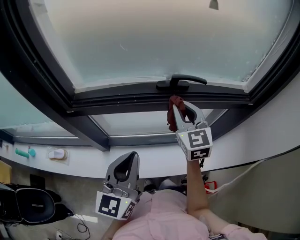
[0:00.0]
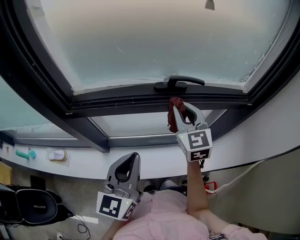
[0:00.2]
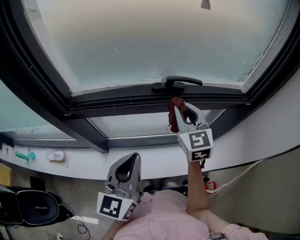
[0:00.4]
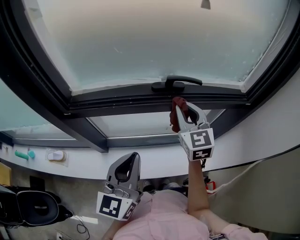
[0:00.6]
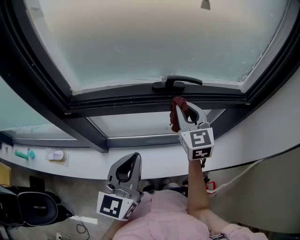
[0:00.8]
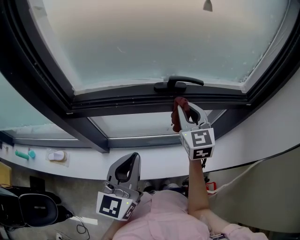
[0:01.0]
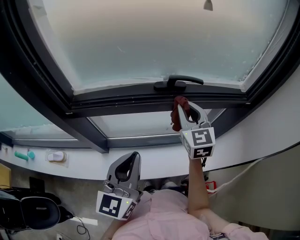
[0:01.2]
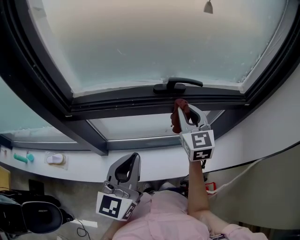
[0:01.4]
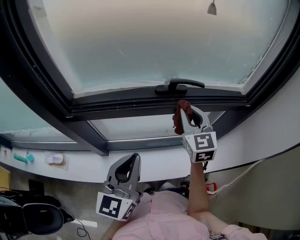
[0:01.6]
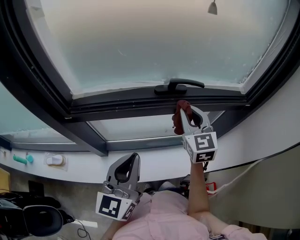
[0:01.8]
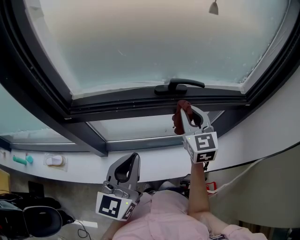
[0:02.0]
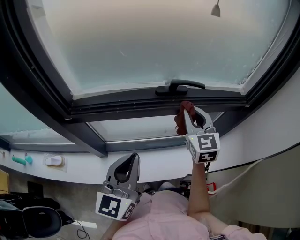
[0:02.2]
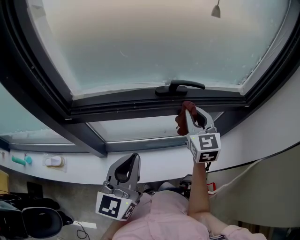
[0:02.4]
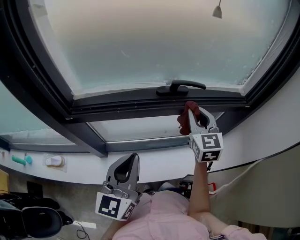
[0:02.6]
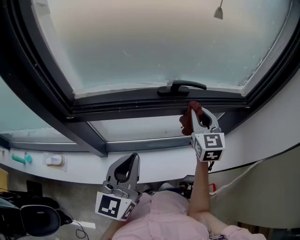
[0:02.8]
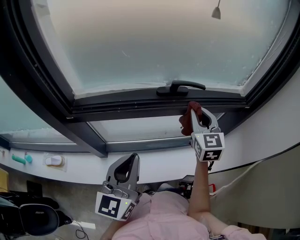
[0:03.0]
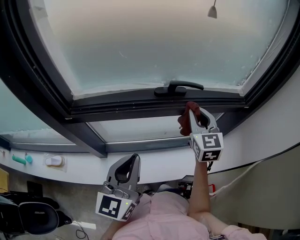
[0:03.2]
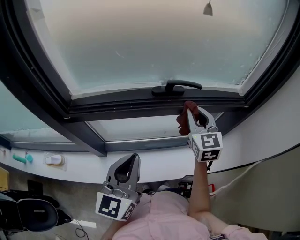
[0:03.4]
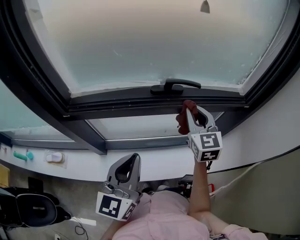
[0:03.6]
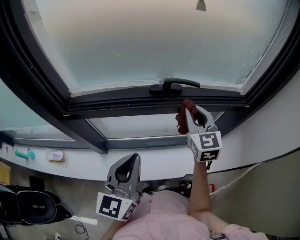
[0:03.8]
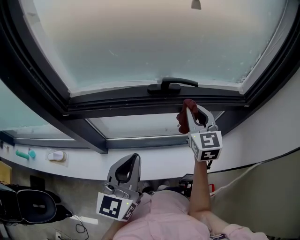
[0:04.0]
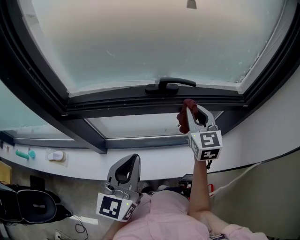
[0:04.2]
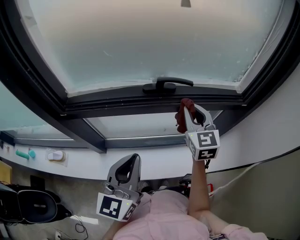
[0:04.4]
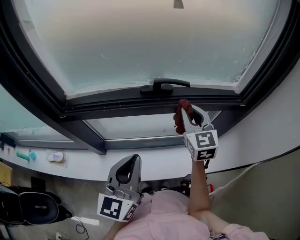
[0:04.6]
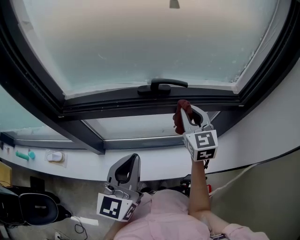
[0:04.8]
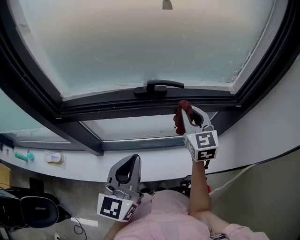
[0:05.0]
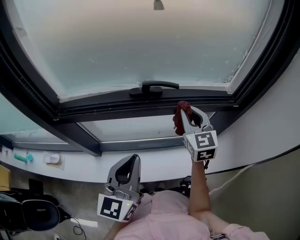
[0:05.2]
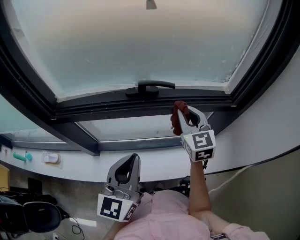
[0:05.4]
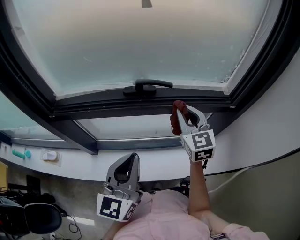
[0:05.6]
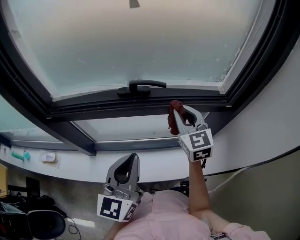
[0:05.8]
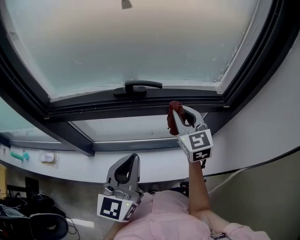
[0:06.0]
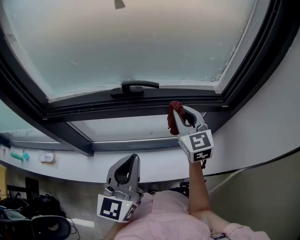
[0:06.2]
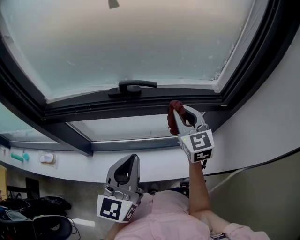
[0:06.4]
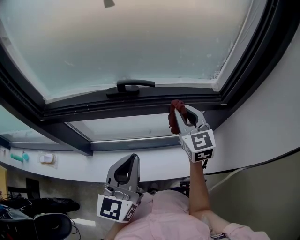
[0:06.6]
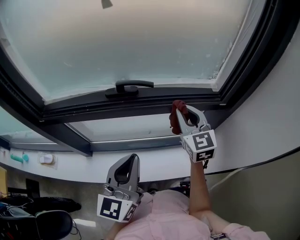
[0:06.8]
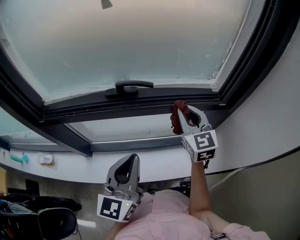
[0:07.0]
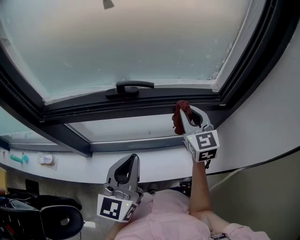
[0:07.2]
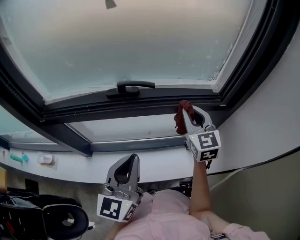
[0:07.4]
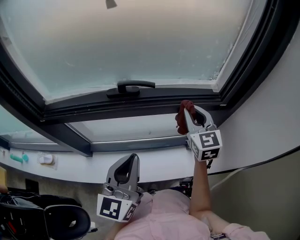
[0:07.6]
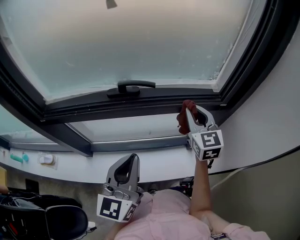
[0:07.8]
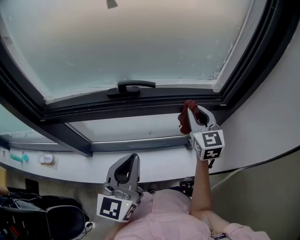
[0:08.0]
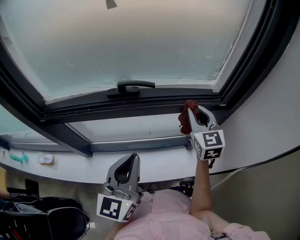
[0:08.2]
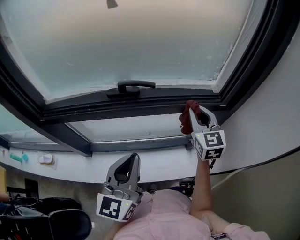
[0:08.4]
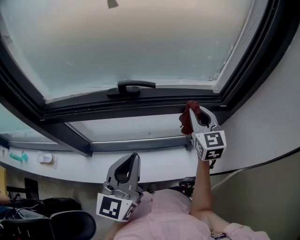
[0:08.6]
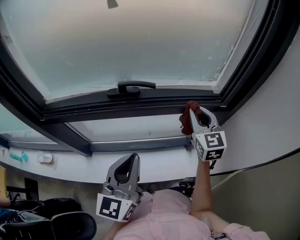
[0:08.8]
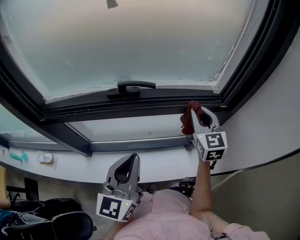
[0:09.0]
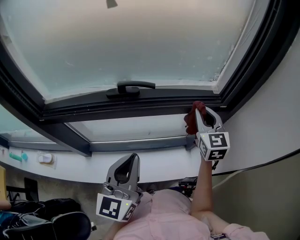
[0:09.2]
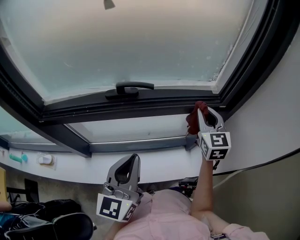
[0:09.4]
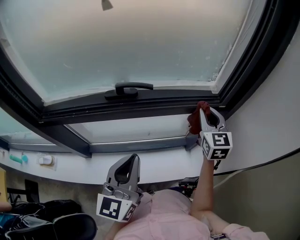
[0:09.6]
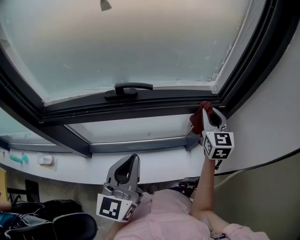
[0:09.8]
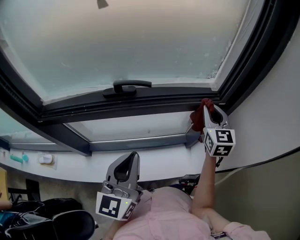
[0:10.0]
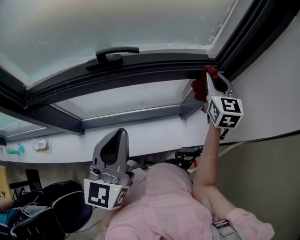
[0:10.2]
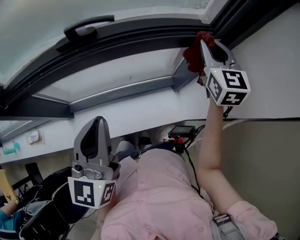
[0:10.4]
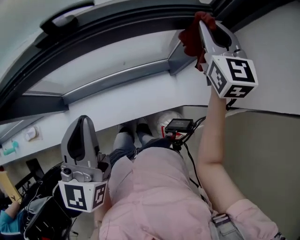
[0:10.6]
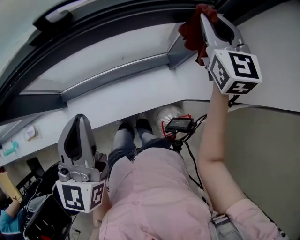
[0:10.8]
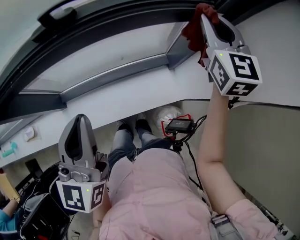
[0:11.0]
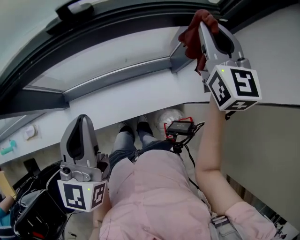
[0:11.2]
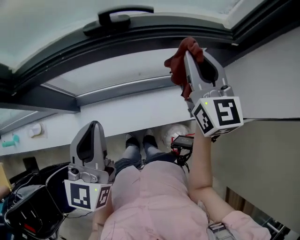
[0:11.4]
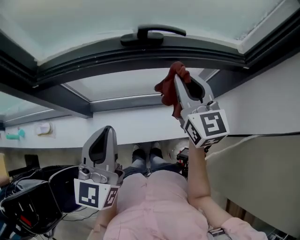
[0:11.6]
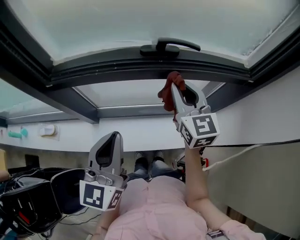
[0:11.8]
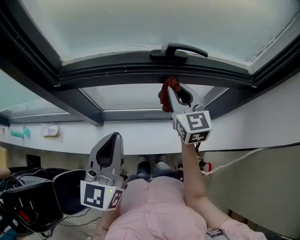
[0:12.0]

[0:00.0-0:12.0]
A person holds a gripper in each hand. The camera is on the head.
0:00.0 to 0:01.6: The grippers move only a little.
0:01.6 to 0:03.0: The grippers move only a little.
0:03.0 to 0:04.4: The left gripper heads to the right, covering some 5 cm.
0:04.4 to 0:06.0: The right gripper moves to the right, roughly 5 cm. Meanwhile the left gripper is displaced to the right by about 10 cm.
0:06.0 to 0:07.6: The right gripper shifts approximately 5 cm to the right.
0:07.6 to 0:09.0: The grippers make only small movements.
0:09.0 to 0:10.4: The right gripper shifts roughly 10 cm to the right.
0:10.4 to 0:12.0: The left gripper travels to the left by some 20 cm, while the right gripper shifts approximately 35 cm to the left, and rotates roughly 20 degrees.

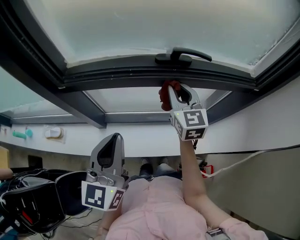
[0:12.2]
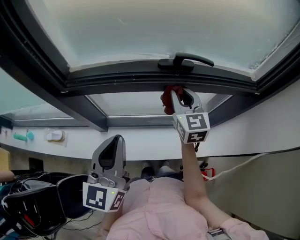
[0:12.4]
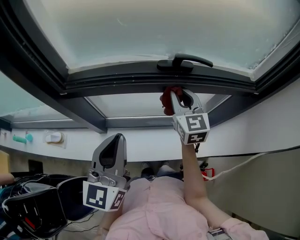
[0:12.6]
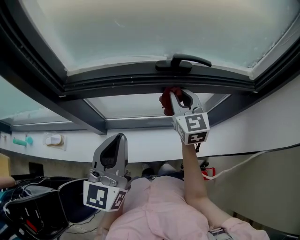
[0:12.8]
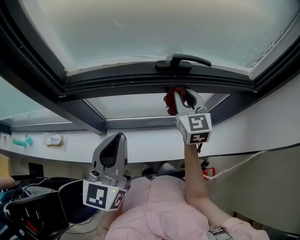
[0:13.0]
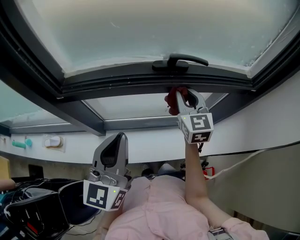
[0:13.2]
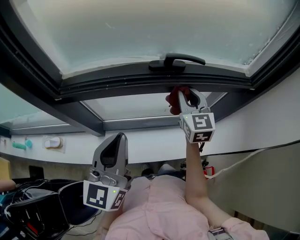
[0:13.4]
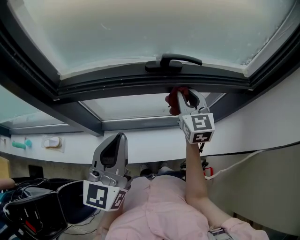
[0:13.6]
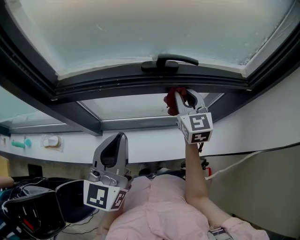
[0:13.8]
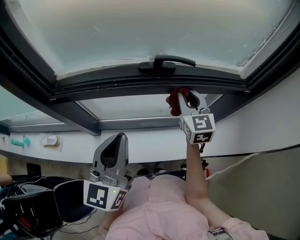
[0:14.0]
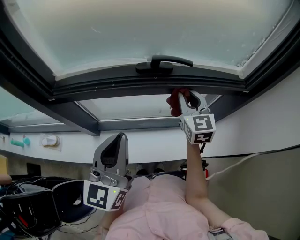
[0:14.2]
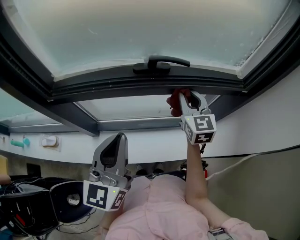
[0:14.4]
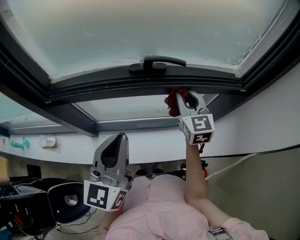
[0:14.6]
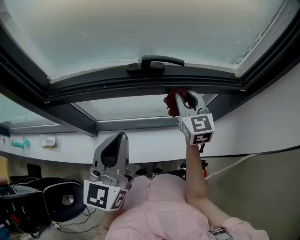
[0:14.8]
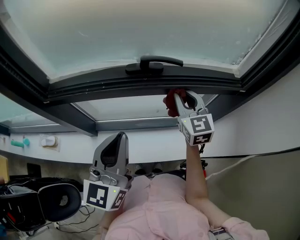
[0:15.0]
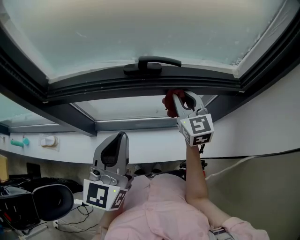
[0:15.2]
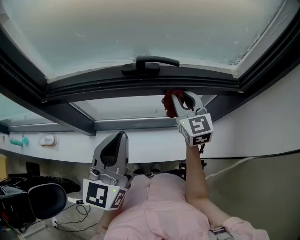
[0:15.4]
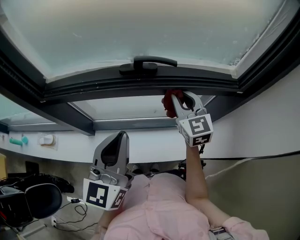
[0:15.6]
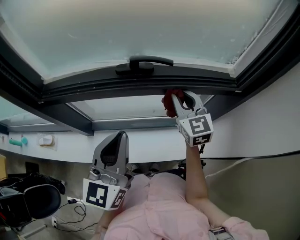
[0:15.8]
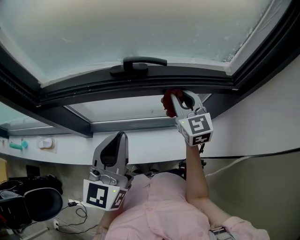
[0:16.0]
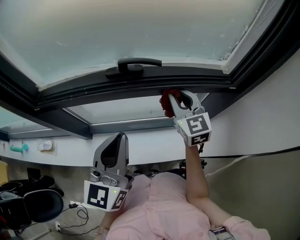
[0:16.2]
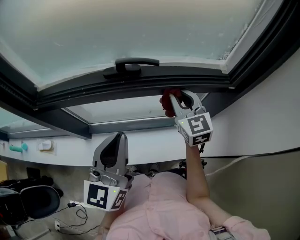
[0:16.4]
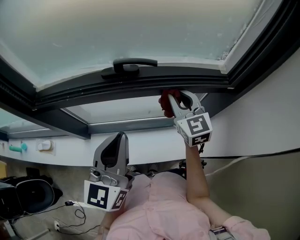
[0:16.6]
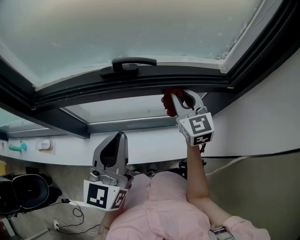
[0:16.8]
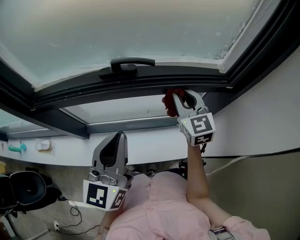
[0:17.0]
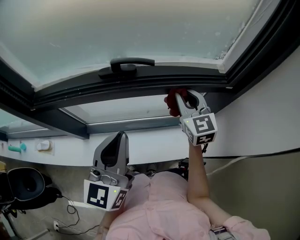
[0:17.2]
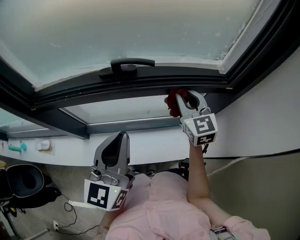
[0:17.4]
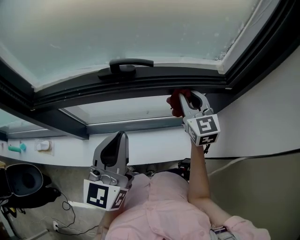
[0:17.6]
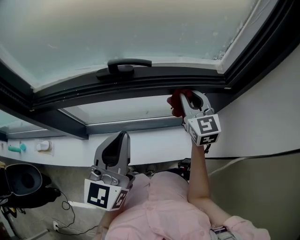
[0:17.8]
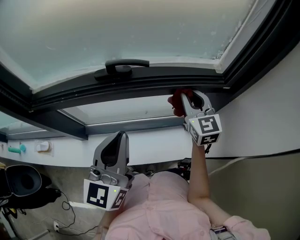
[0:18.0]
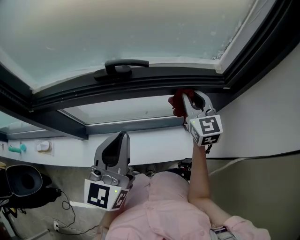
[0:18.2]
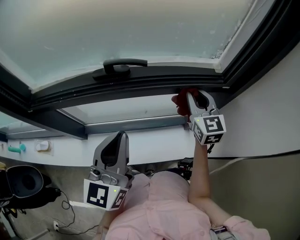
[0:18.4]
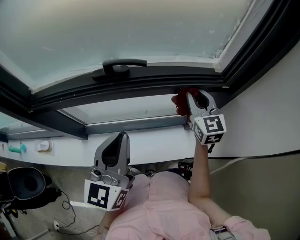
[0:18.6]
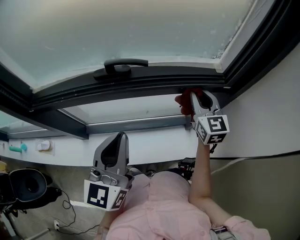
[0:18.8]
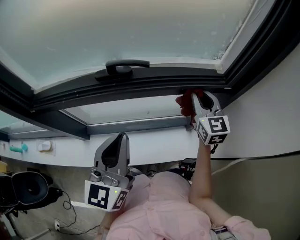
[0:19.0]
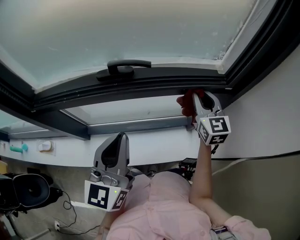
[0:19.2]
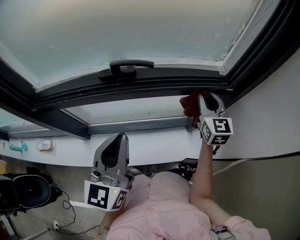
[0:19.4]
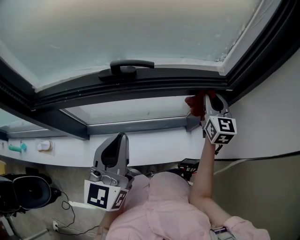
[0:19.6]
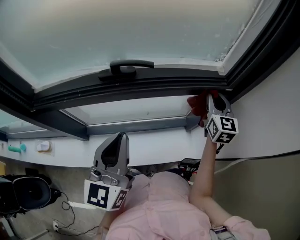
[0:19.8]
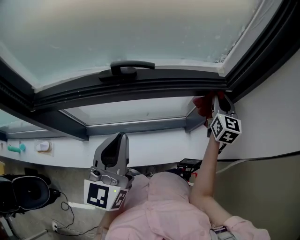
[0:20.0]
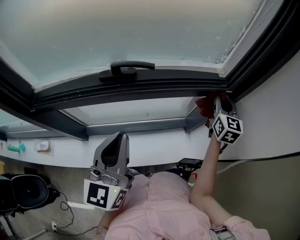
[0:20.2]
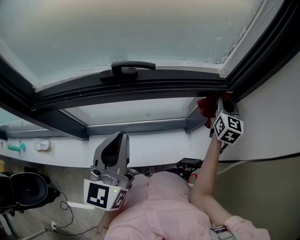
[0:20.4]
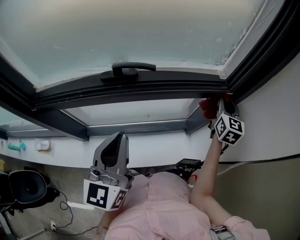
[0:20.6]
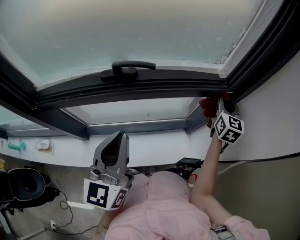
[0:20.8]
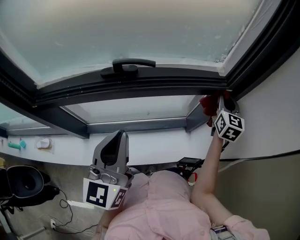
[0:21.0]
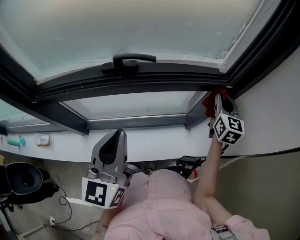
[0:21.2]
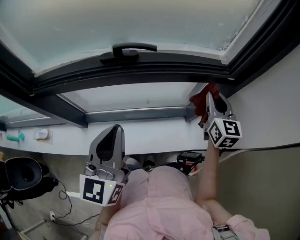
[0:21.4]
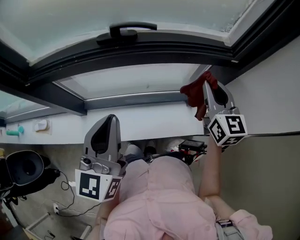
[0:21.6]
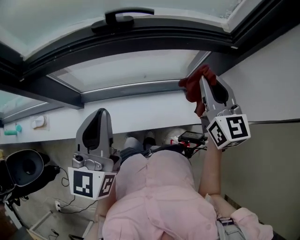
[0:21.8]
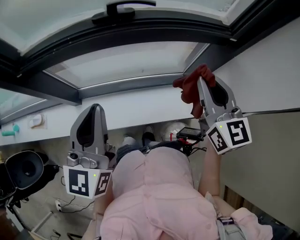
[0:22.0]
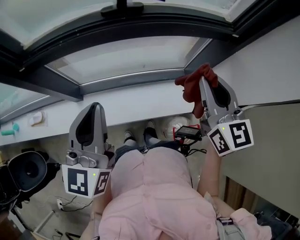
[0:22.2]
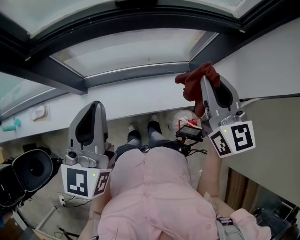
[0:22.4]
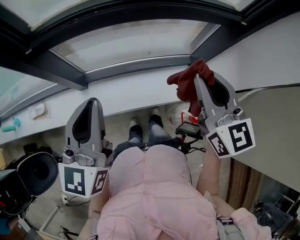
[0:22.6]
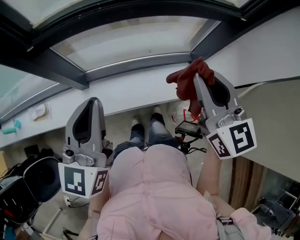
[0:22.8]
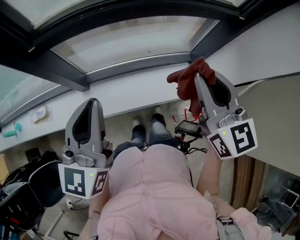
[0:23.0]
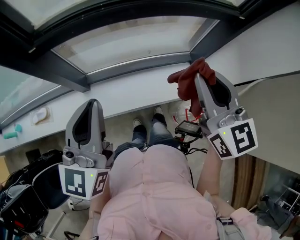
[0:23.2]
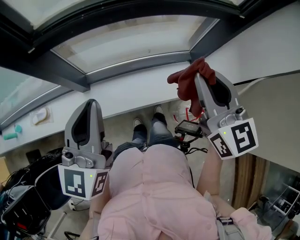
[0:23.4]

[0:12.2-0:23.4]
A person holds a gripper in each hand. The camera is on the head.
0:12.2 to 0:13.8: The left gripper moves some 5 cm. Meanwhile the right gripper travels to the right by approximately 5 cm.
0:13.8 to 0:15.4: The left gripper moves to the right, approximately 5 cm.
0:15.4 to 0:17.0: The grippers both shift to the right by about 5 cm.
0:17.0 to 0:18.6: The right gripper goes some 10 cm to the right.
0:18.6 to 0:20.2: The right gripper is displaced to the right by about 10 cm, and swivels approximately 20 degrees.
0:20.2 to 0:21.8: The left gripper shifts approximately 5 cm backward; the right gripper shifts some 20 cm backward and to the left, and changes its angle by some 20 degrees.
0:21.8 to 0:23.4: The two grippers go roughly 20 cm to the left and backward.

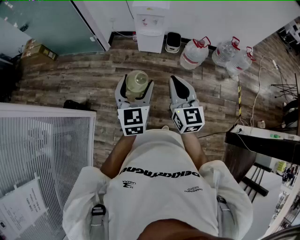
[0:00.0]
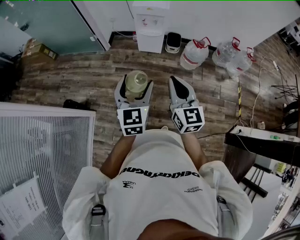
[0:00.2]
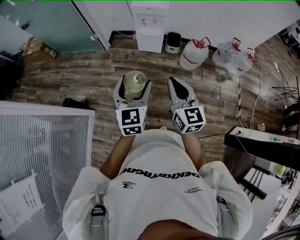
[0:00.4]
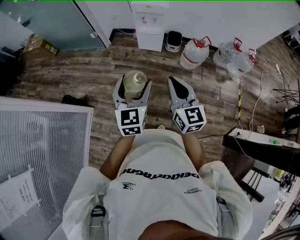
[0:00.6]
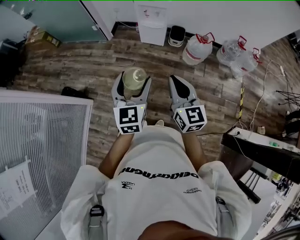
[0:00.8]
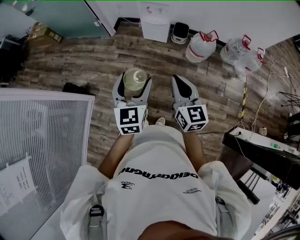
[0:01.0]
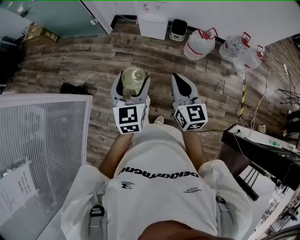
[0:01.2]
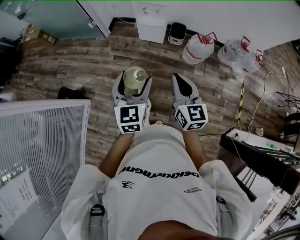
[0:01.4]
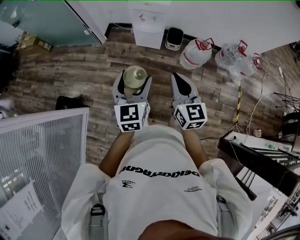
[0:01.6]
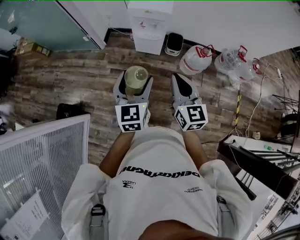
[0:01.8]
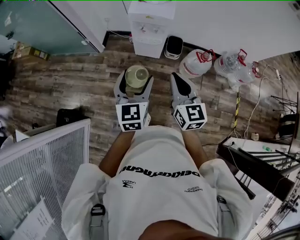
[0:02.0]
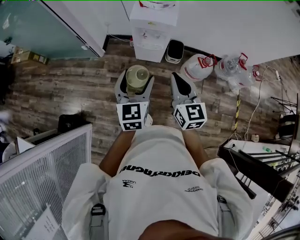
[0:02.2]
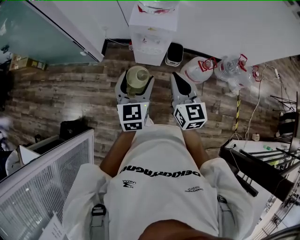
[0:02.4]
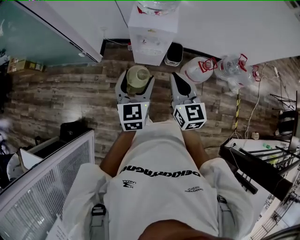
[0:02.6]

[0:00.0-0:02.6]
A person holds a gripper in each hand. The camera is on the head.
0:00.0 to 0:01.2: The right gripper heads to the right and downward, covering about 10 cm. Meanwhile the left gripper heads to the right, covering roughly 5 cm.
0:01.2 to 0:02.6: The two grippers travel together, forward, about 40 cm.
